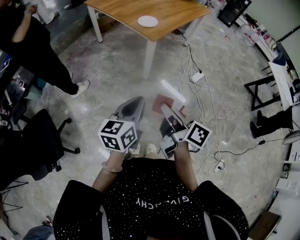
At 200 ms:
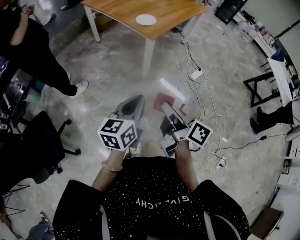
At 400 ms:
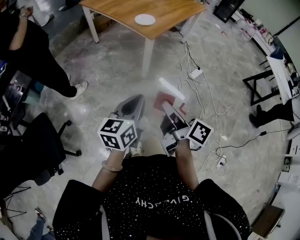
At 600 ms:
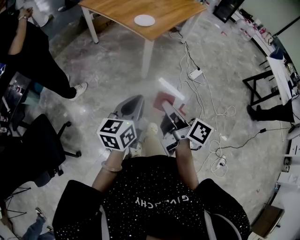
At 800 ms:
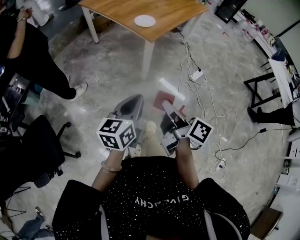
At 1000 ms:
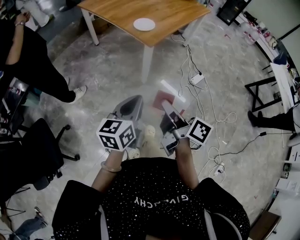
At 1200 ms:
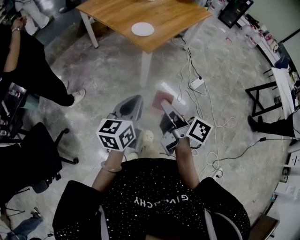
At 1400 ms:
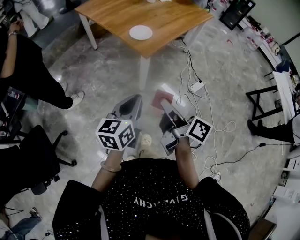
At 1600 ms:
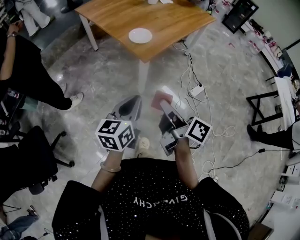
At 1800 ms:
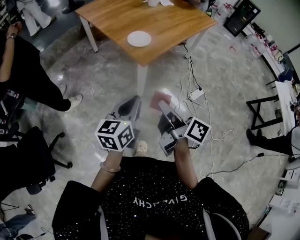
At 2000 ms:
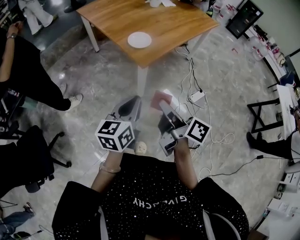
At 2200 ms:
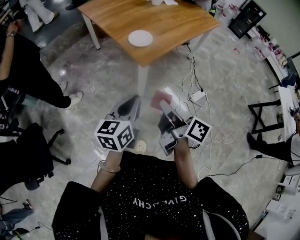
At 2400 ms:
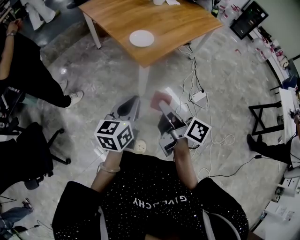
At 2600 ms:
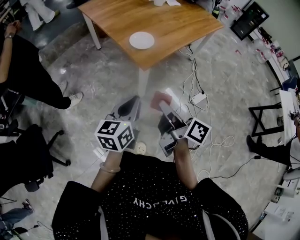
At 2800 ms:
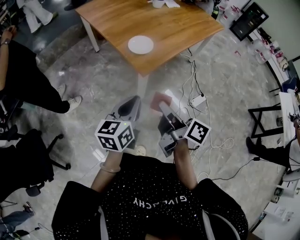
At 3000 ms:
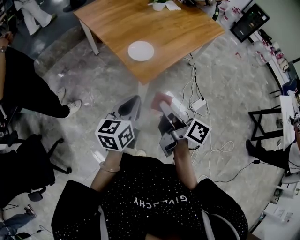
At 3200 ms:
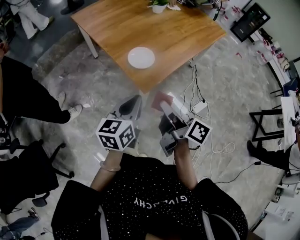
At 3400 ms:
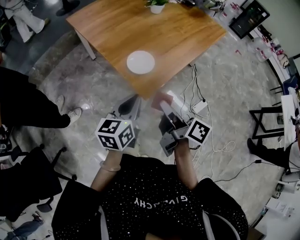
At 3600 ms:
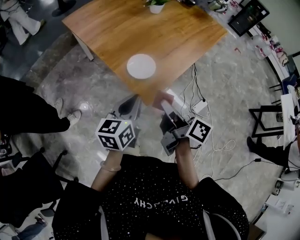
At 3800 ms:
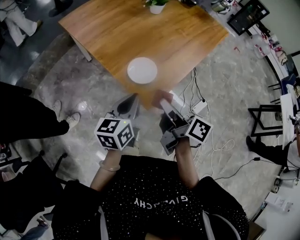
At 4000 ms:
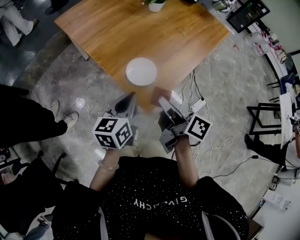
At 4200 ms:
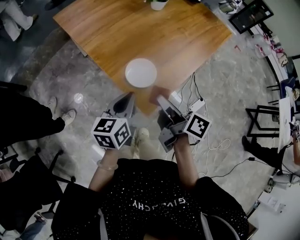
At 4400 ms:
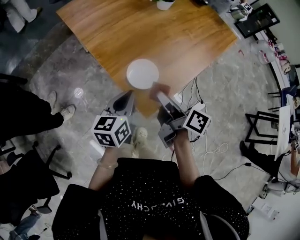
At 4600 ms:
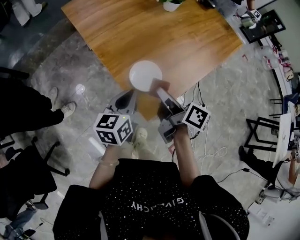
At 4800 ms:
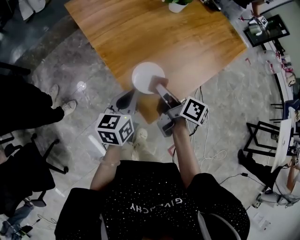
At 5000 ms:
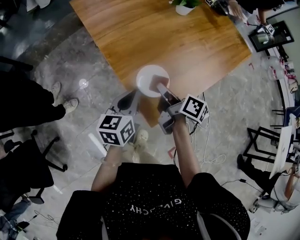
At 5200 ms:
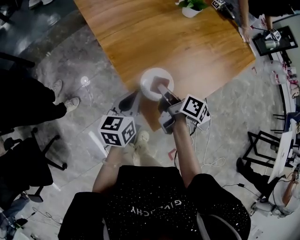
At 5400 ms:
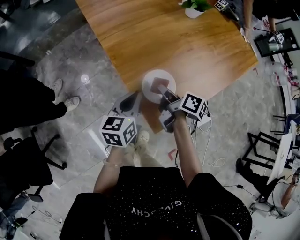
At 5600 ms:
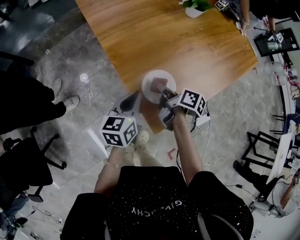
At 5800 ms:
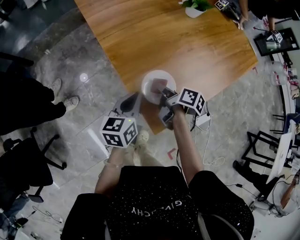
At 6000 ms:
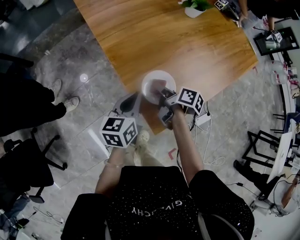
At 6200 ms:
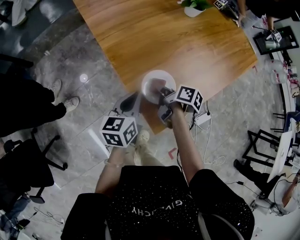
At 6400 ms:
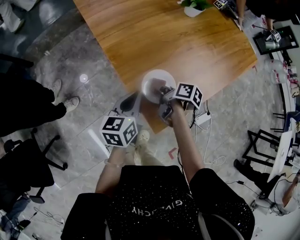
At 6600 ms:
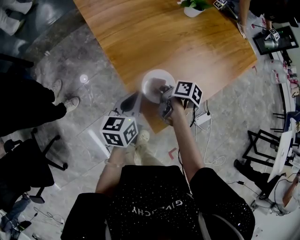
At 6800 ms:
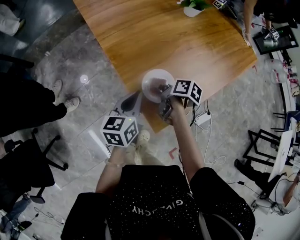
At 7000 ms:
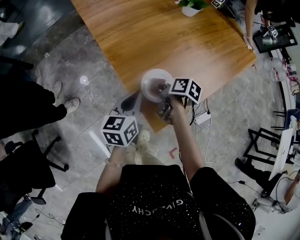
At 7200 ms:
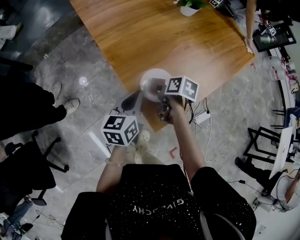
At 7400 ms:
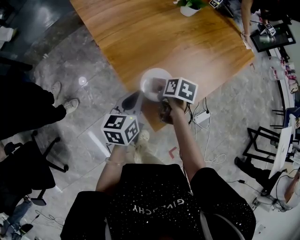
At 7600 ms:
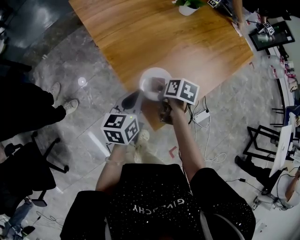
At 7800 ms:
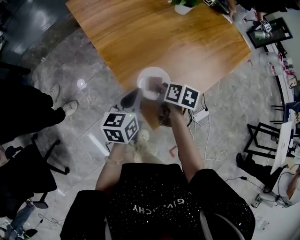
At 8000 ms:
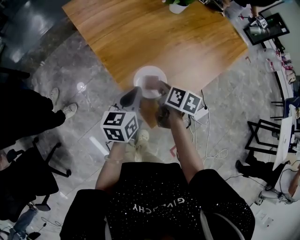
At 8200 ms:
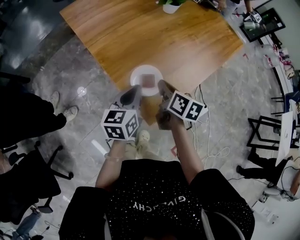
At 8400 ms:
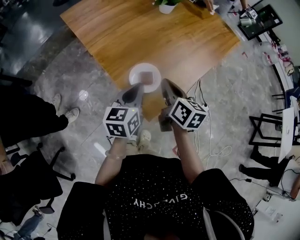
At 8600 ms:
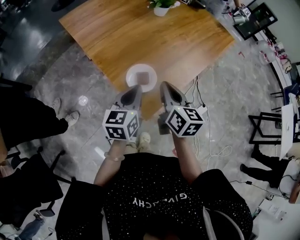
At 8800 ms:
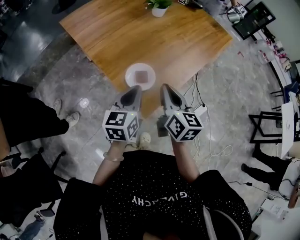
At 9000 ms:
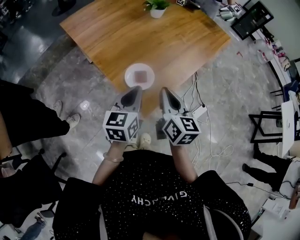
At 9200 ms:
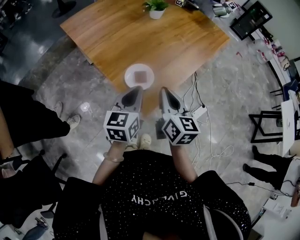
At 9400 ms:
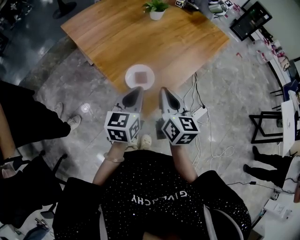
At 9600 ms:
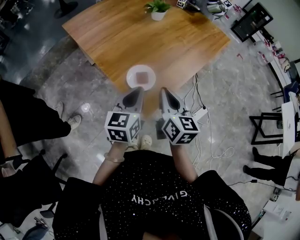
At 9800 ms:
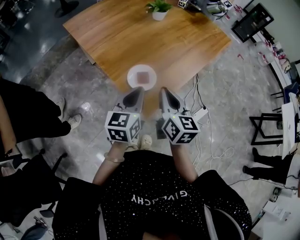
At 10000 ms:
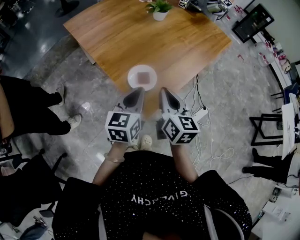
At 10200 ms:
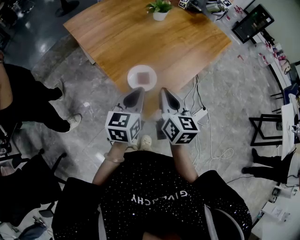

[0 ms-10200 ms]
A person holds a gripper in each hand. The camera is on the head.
0 ms to 1400 ms: Both grippers move forward, about 20 cm.
1400 ms to 3000 ms: Both grippers move forward, some 20 cm.
3000 ms to 4400 ms: Both grippers move forward, about 25 cm.
4400 ms to 5800 ms: The right gripper goes some 20 cm downward and forward, and turns by about 20 degrees; the left gripper moves forward and downward, some 10 cm.
5800 ms to 7200 ms: The right gripper turns by approximately 30 degrees, and opens its fingers.
7200 ms to 8800 ms: The left gripper heads upward, backward and to the right, covering roughly 10 cm. The right gripper moves upward and backward, some 25 cm, angles its fingers upward, by some 40 degrees, and closes.
8800 ms to 10200 ms: The grippers stay close to where they were, moving slightly.

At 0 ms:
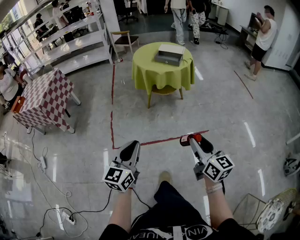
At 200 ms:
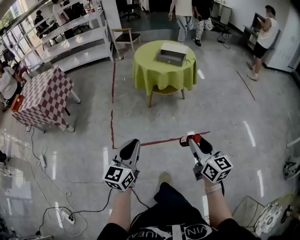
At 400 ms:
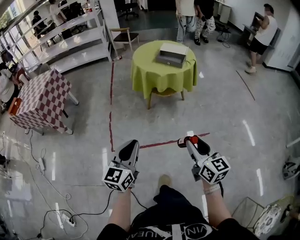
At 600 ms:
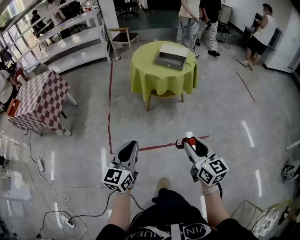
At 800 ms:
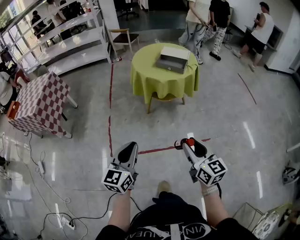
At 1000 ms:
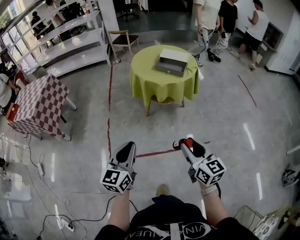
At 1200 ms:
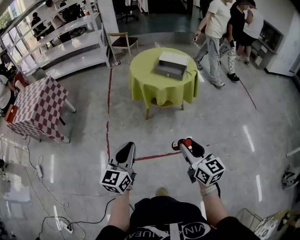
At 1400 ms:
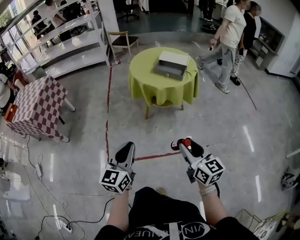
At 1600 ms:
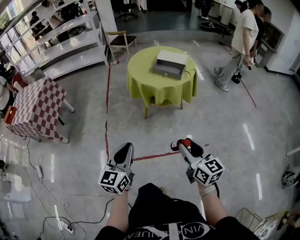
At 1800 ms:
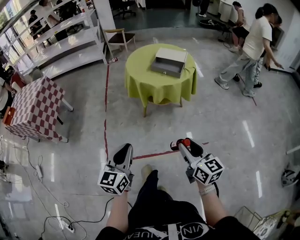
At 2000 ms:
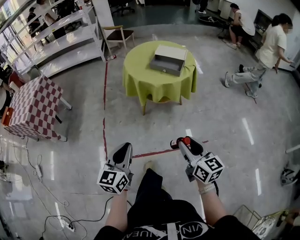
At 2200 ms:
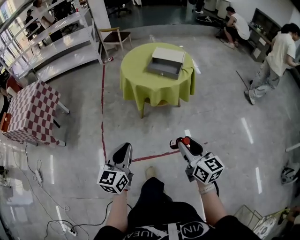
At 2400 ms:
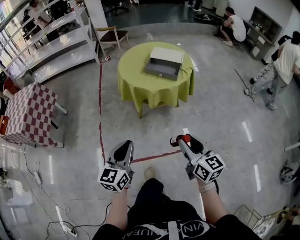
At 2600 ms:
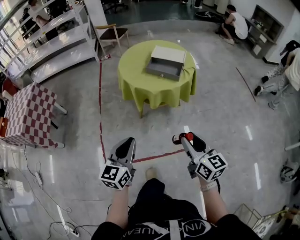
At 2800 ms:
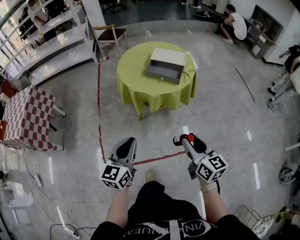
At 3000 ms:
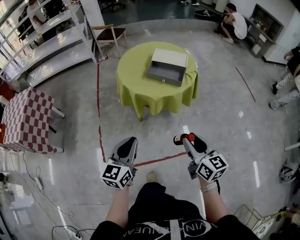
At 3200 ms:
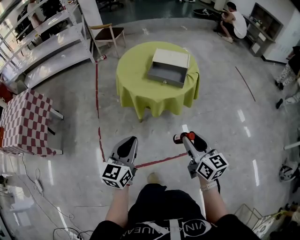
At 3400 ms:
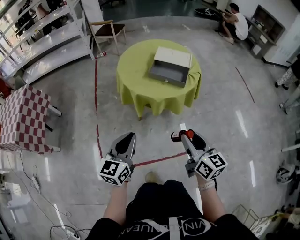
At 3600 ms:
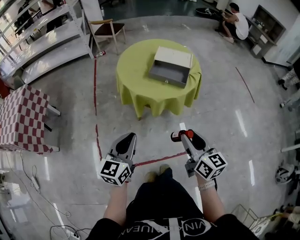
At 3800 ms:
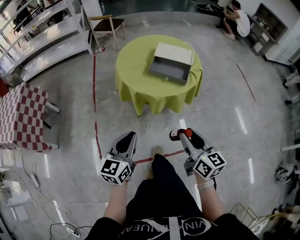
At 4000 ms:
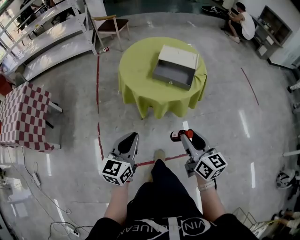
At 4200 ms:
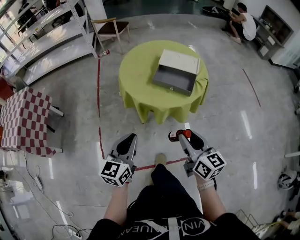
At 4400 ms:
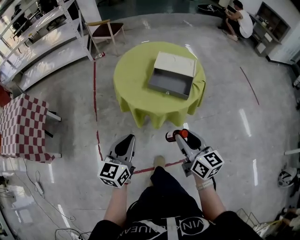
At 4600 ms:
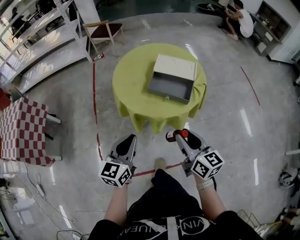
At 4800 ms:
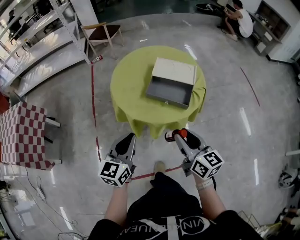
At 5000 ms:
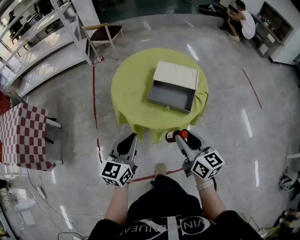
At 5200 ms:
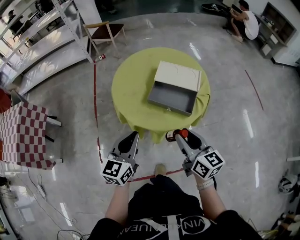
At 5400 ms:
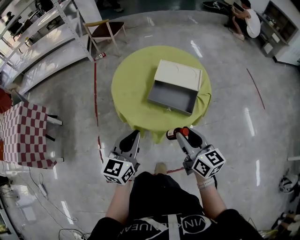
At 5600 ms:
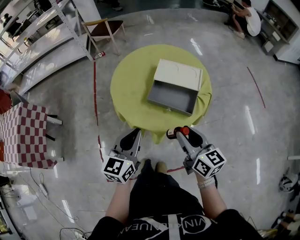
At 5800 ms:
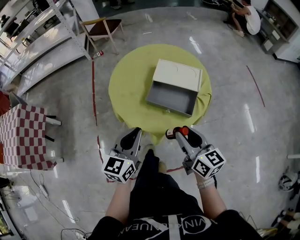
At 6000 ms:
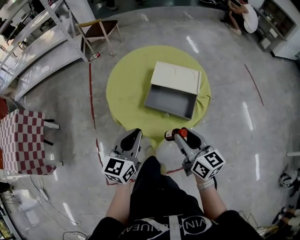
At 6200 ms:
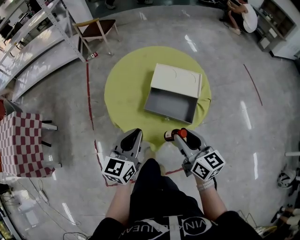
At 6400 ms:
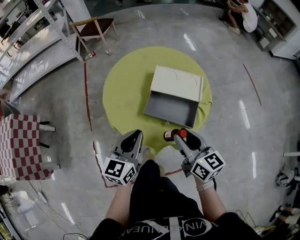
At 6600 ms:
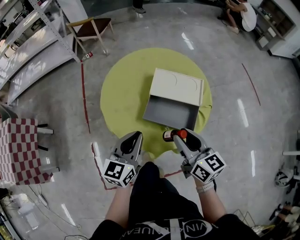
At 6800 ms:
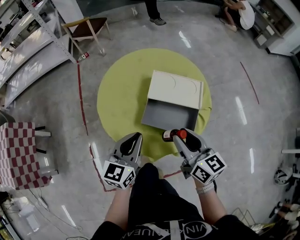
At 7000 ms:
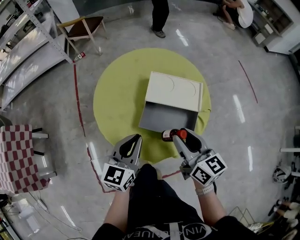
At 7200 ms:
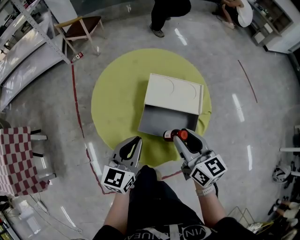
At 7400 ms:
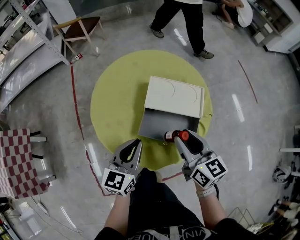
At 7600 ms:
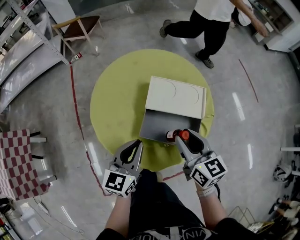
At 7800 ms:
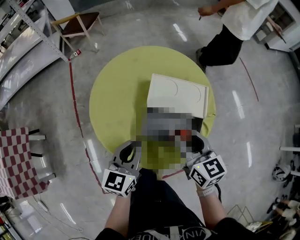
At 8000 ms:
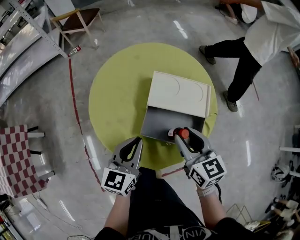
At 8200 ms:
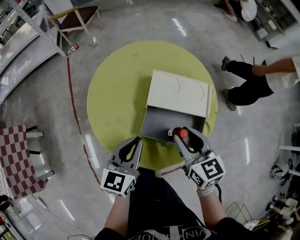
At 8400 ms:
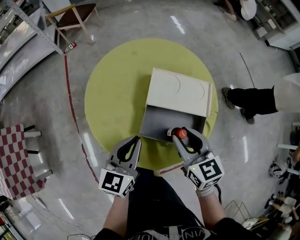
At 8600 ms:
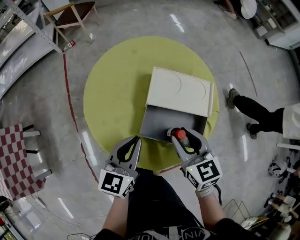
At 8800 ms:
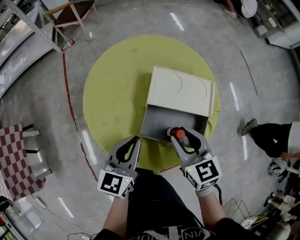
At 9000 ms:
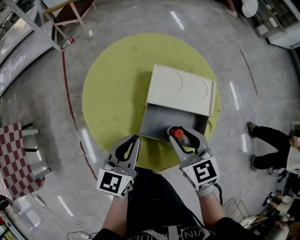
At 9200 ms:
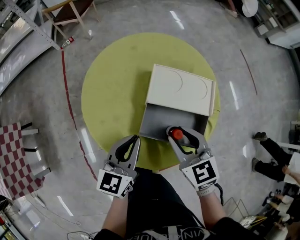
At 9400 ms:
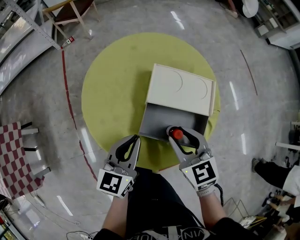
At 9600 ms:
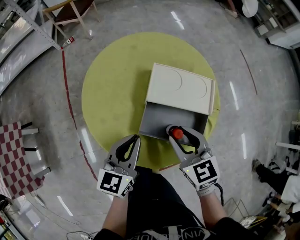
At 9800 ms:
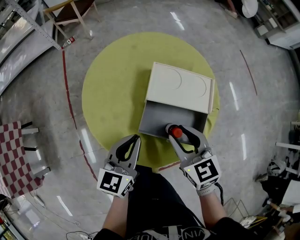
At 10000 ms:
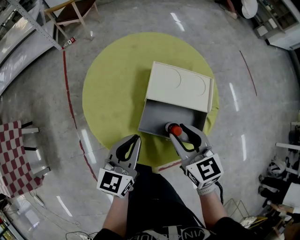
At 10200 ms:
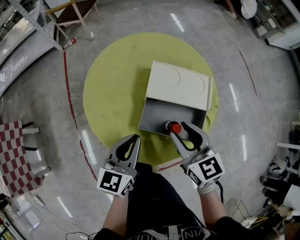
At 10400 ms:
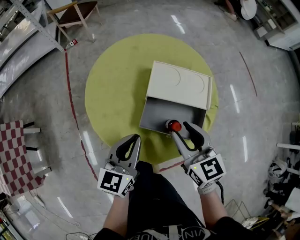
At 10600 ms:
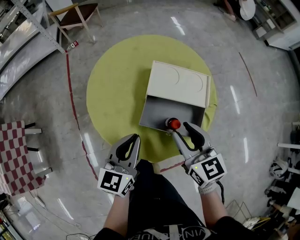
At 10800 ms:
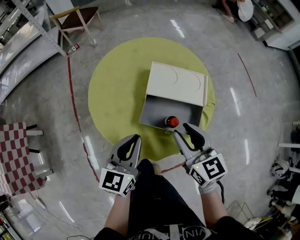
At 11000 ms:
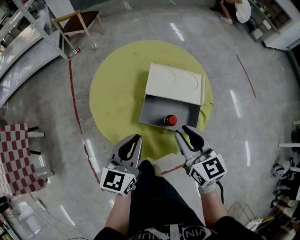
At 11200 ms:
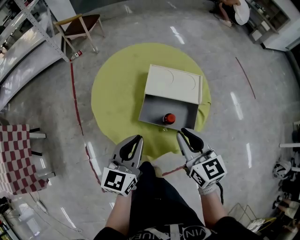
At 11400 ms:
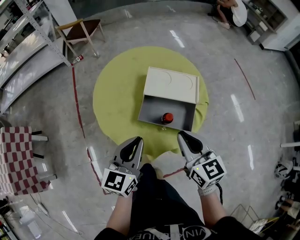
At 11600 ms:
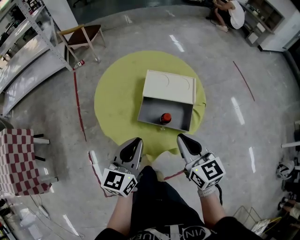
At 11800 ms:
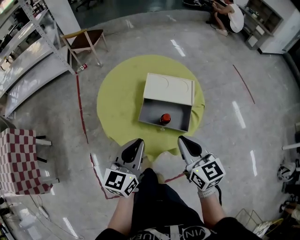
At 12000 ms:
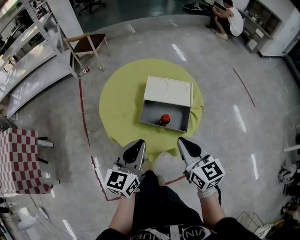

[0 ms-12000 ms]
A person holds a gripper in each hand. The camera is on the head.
0 ms to 1600 ms: The two grippers go roughly 20 cm forward.
1600 ms to 3000 ms: Both grippers move forward, roughly 20 cm.
3000 ms to 4400 ms: Both grippers move forward, about 15 cm.
4400 ms to 6000 ms: The two grippers go approximately 15 cm forward.
6000 ms to 7600 ms: The left gripper heads forward and downward, covering roughly 15 cm. Meanwhile the right gripper goes roughly 15 cm forward.
7600 ms to 9000 ms: The right gripper ends up approximately 5 cm from where it was, and rotates some 20 degrees.
9000 ms to 10400 ms: The grippers move only a little.
10400 ms to 12000 ms: The right gripper is displaced backward and upward by some 15 cm, and closes. Meanwhile the left gripper is displaced upward and backward by roughly 10 cm.

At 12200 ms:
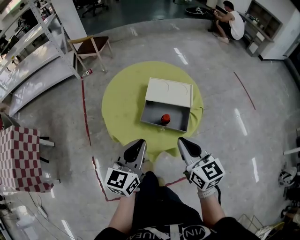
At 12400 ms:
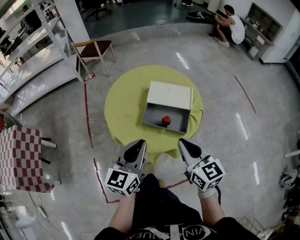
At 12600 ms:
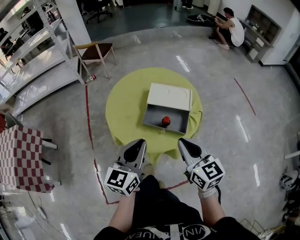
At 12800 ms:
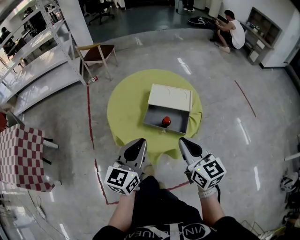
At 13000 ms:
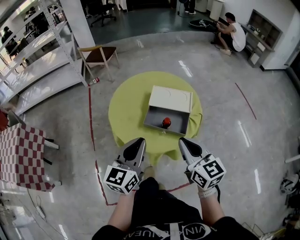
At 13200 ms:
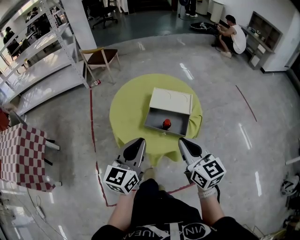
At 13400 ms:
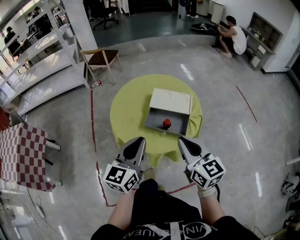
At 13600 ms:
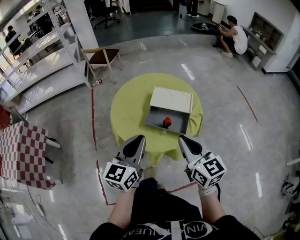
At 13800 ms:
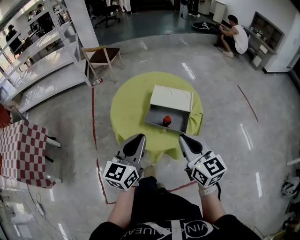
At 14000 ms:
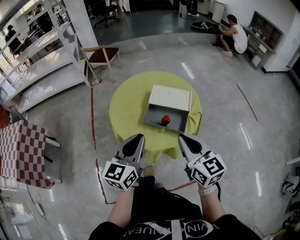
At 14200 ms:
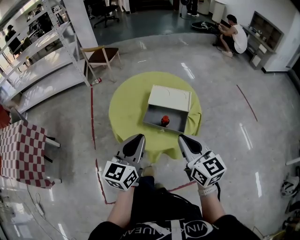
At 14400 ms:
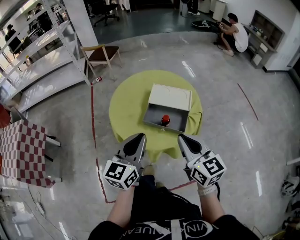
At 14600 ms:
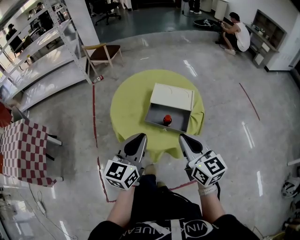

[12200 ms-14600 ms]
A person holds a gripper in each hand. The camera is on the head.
12200 ms to 13400 ms: The two grippers go some 5 cm upward.
13400 ms to 14600 ms: The grippers make only small movements.
